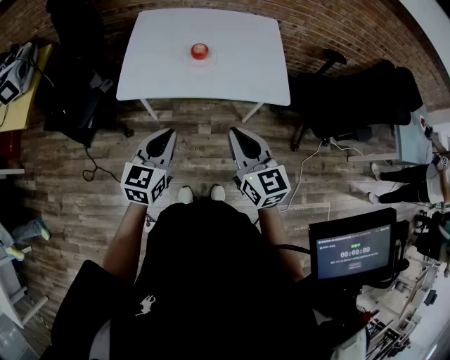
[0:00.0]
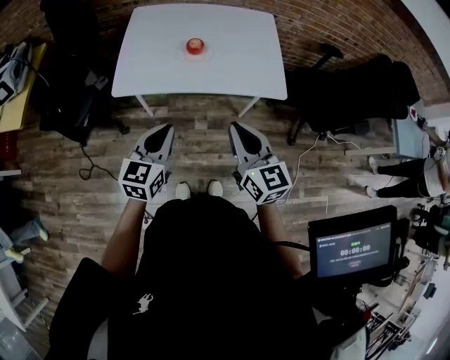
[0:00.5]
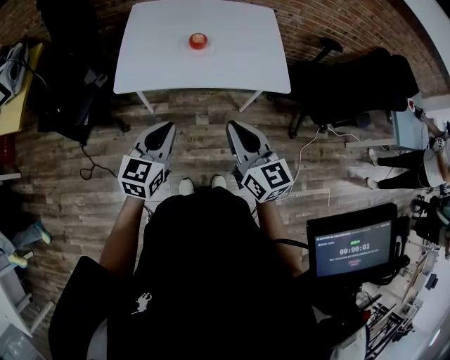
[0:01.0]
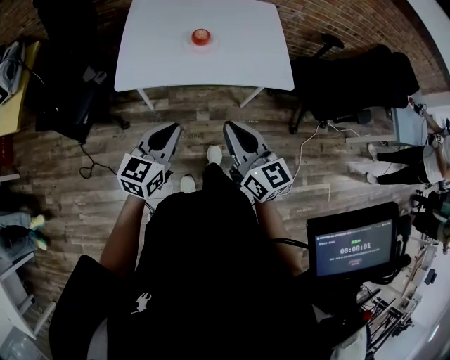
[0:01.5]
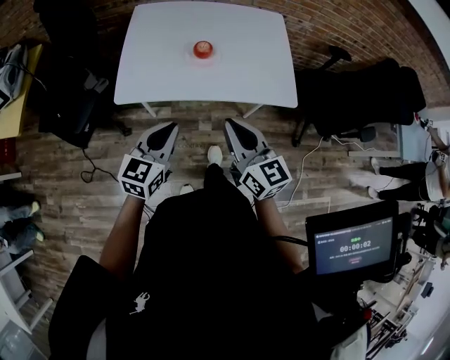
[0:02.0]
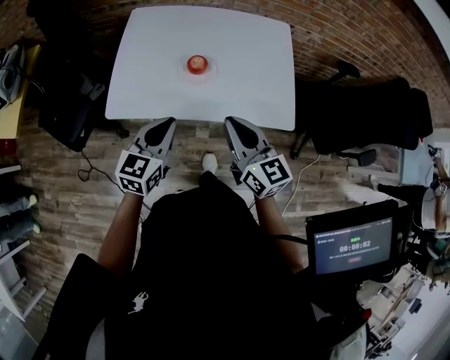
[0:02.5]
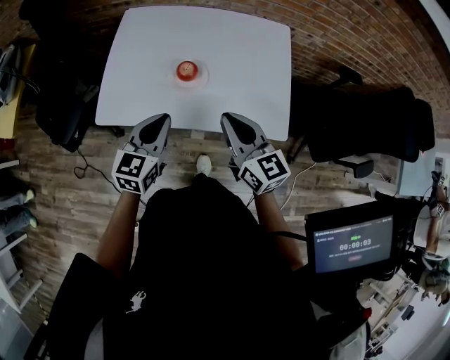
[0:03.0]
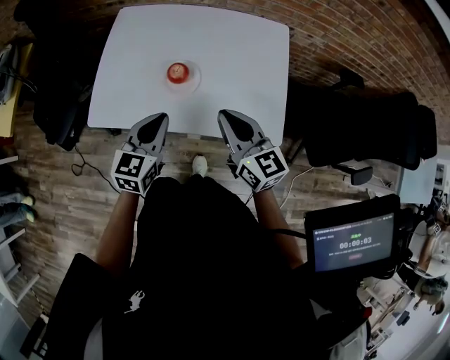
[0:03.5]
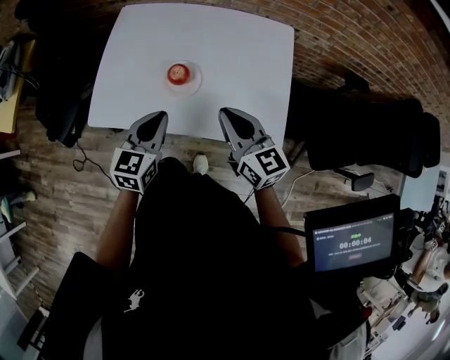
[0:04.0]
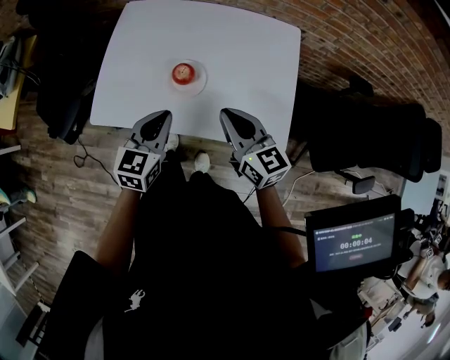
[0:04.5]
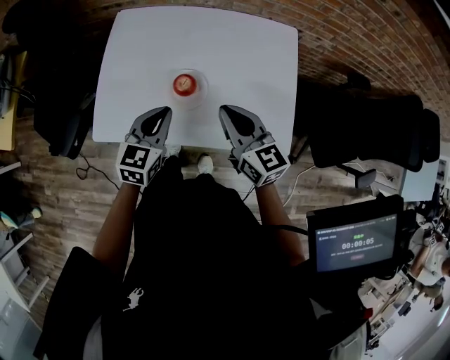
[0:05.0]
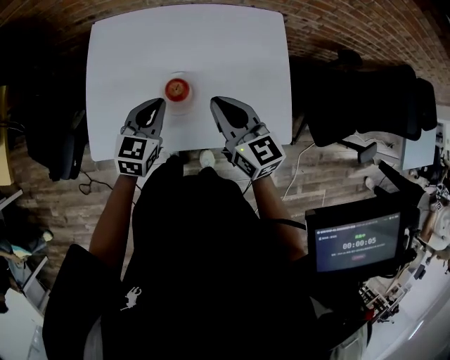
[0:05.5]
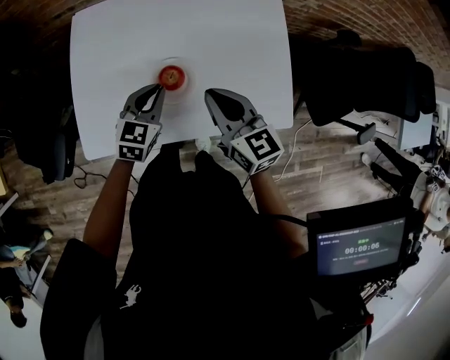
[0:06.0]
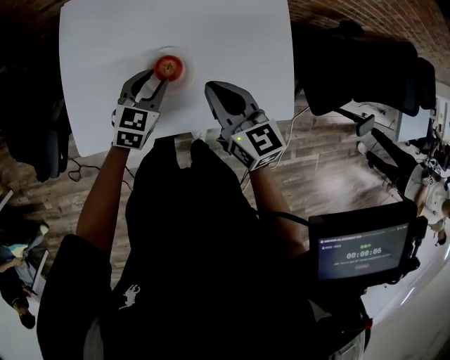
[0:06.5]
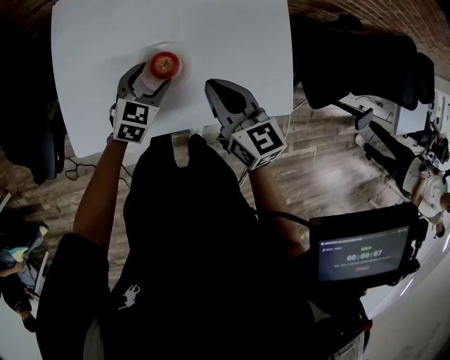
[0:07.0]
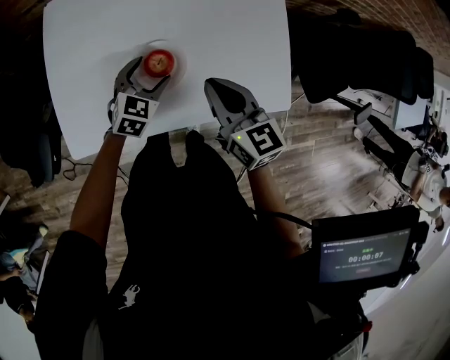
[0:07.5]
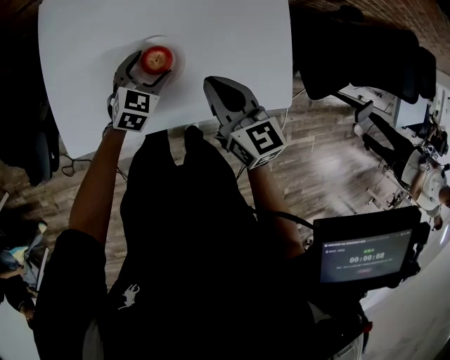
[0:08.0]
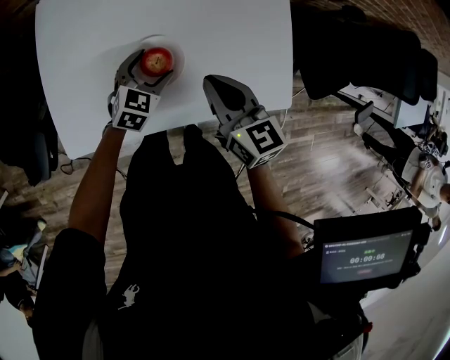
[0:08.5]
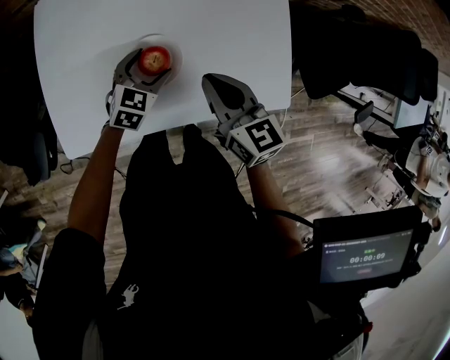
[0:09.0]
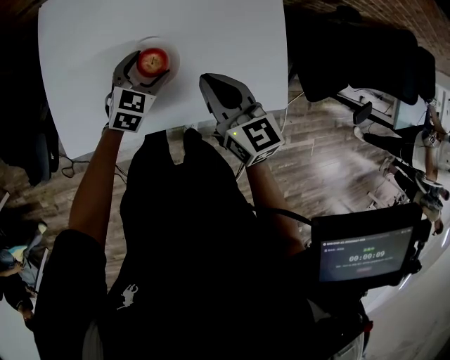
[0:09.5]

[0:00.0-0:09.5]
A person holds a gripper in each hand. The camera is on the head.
0.0 to 2.0 s: The two grippers go roughly 5 cm forward.
2.0 to 4.0 s: The grippers both shift forward and to the right by about 25 cm.
4.0 to 5.5 s: The left gripper is displaced forward by about 10 cm; the right gripper moves forward and to the left, about 10 cm.
5.5 to 7.5 s: The right gripper moves downward, about 5 cm; the left gripper heads downward, covering about 15 cm, rotates about 20 degrees, and opens its fingers.
7.5 to 9.5 s: Neither gripper changes place.

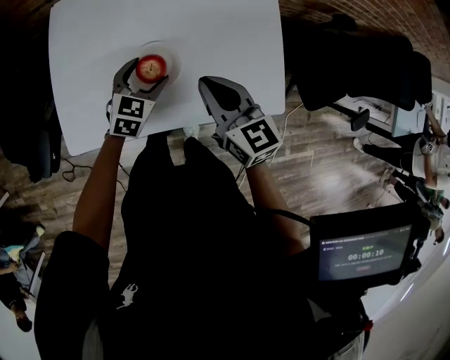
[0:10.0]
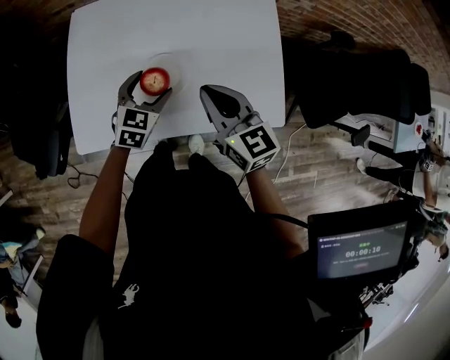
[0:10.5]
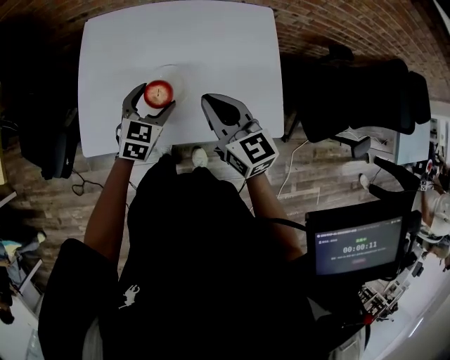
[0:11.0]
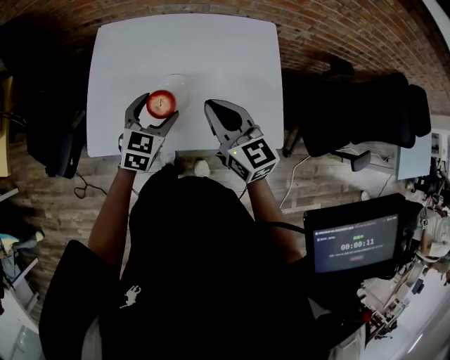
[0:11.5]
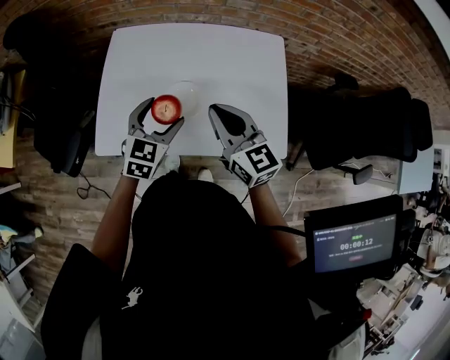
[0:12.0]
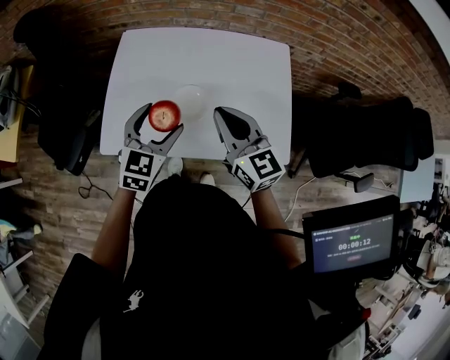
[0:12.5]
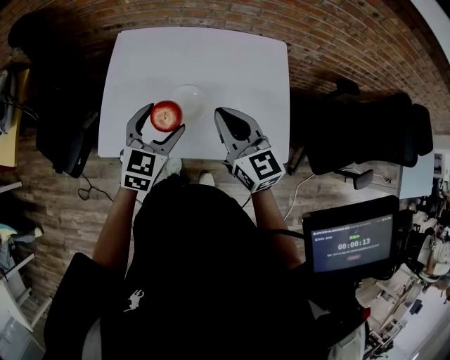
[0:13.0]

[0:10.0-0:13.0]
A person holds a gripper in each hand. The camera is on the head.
10.0 to 11.5 s: The left gripper travels upward and backward by about 10 cm. The right gripper heads upward, covering approximately 5 cm.
11.5 to 13.0 s: The left gripper goes roughly 5 cm upward.

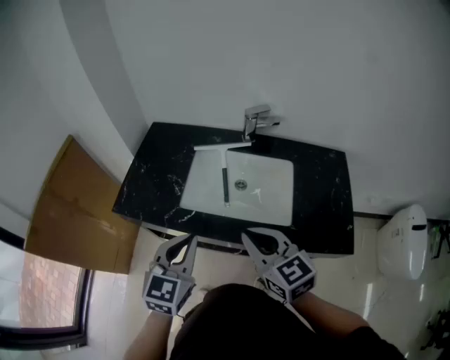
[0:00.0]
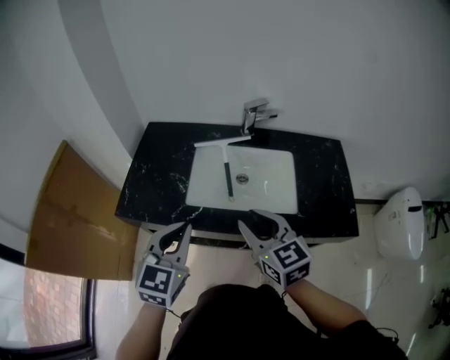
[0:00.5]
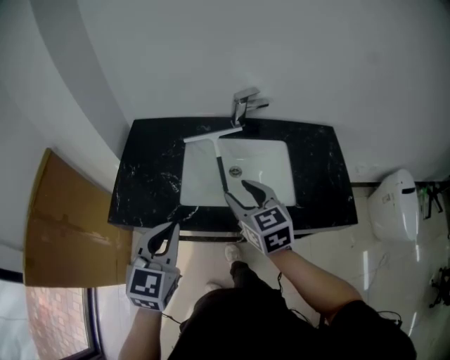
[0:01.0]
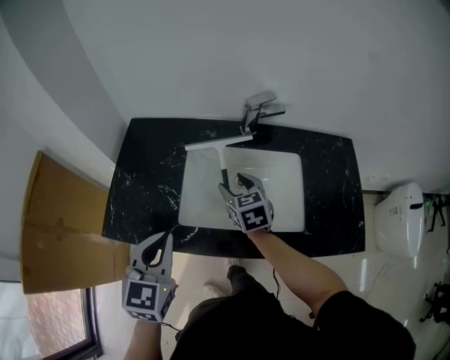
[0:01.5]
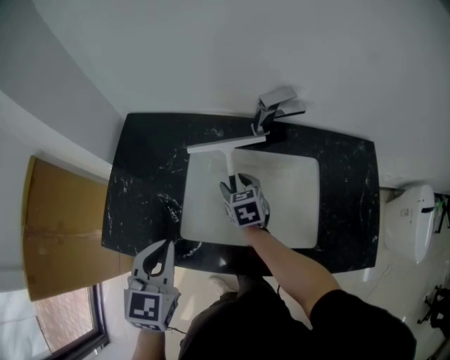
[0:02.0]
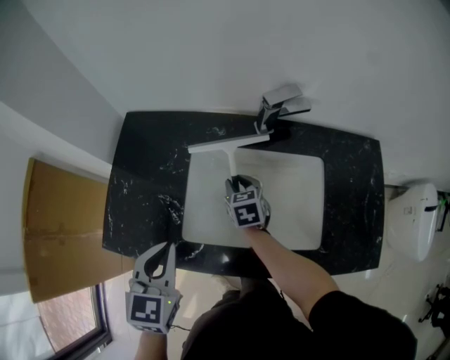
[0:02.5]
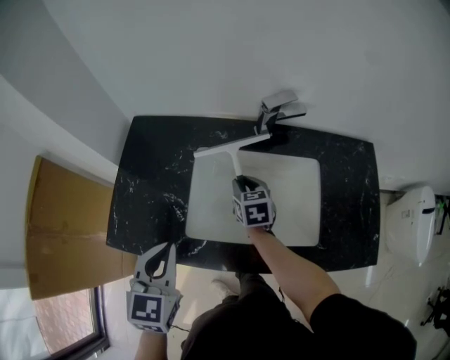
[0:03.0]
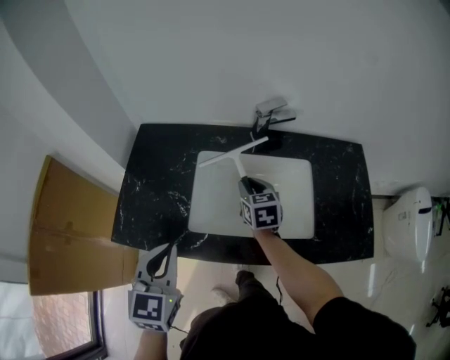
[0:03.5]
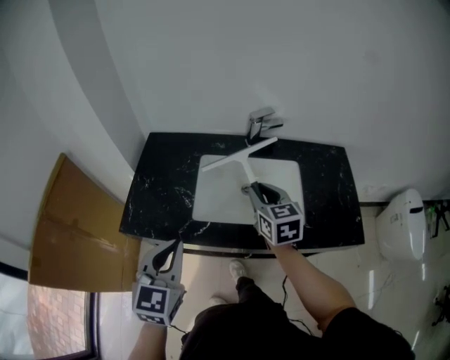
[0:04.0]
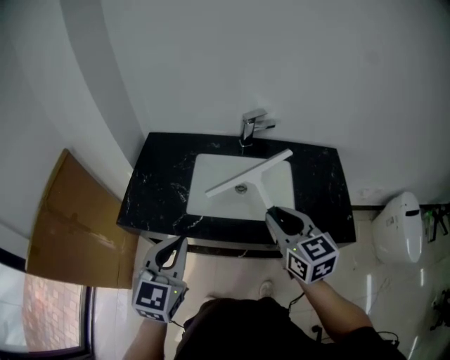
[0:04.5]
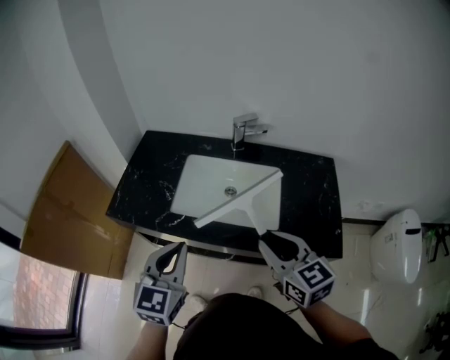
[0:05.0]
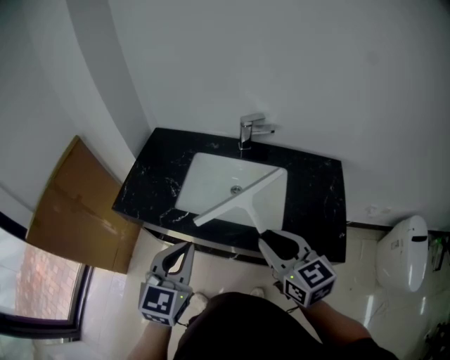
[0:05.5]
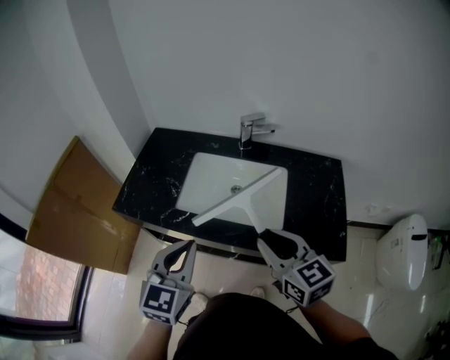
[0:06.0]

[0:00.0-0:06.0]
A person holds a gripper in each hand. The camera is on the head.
0.0 to 2.0 s: The right gripper moves forward and downward, roughly 40 cm, changes its angle by about 30 degrees, and opens its fingers. The left gripper shifts some 15 cm forward and to the left.
2.0 to 4.0 s: The right gripper shifts roughly 25 cm upward and backward, changes its angle by about 20 degrees, and closes its fingers. The left gripper travels backward and upward by approximately 15 cm.
4.0 to 6.0 s: The right gripper goes about 20 cm backward, and turns by approximately 20 degrees, while the left gripper travels to the right and backward by some 15 cm.

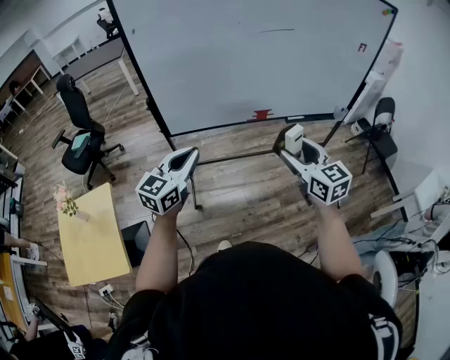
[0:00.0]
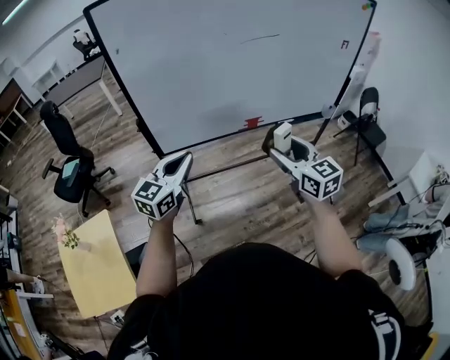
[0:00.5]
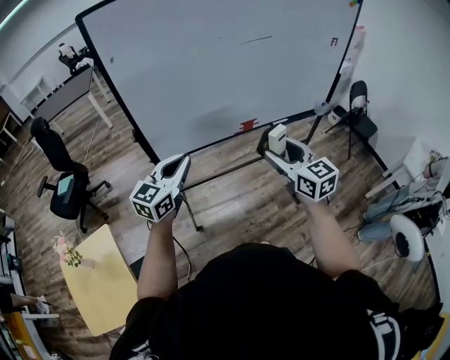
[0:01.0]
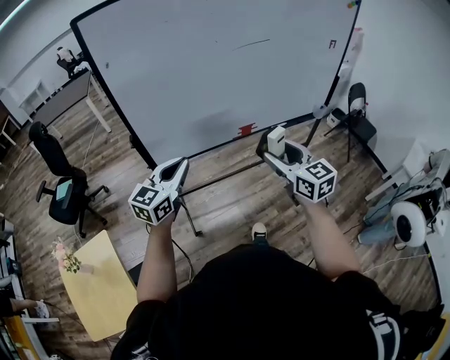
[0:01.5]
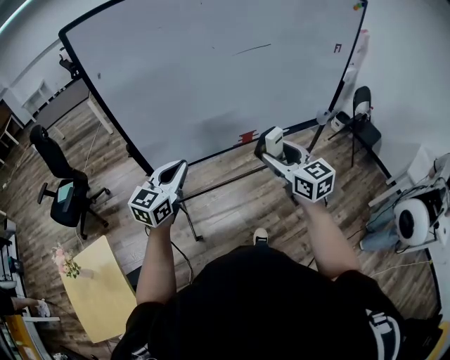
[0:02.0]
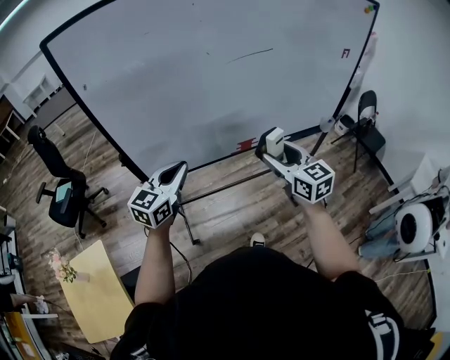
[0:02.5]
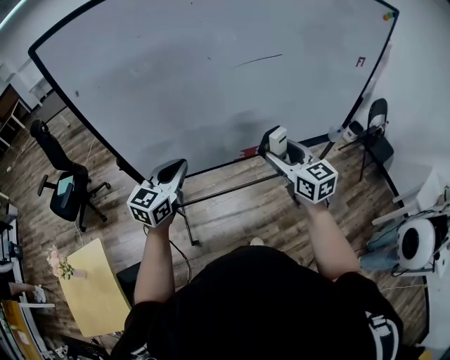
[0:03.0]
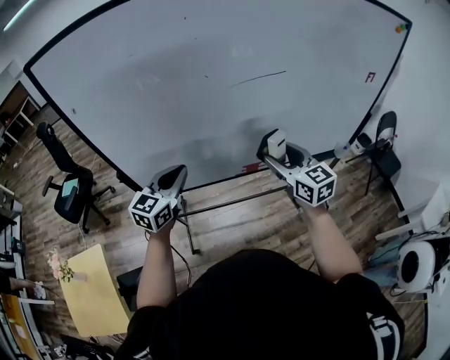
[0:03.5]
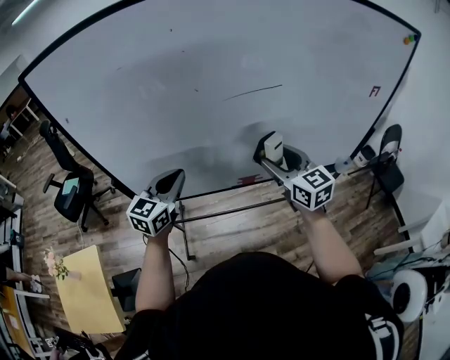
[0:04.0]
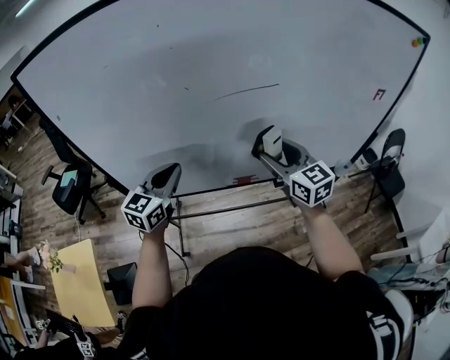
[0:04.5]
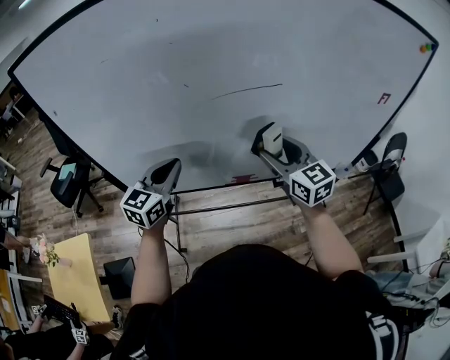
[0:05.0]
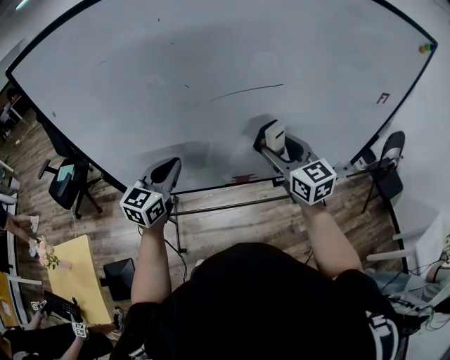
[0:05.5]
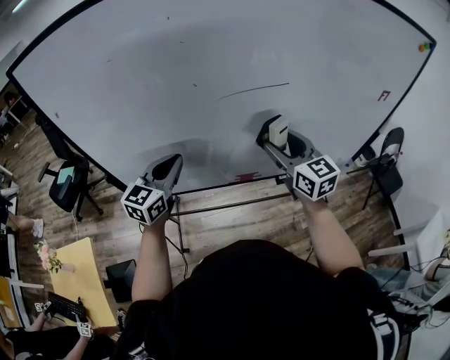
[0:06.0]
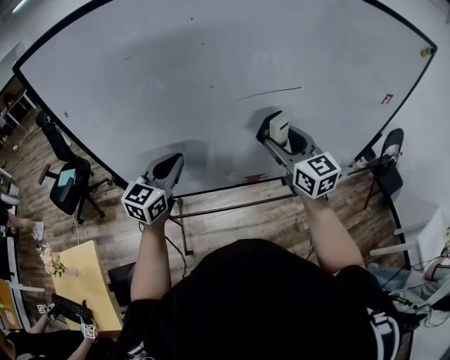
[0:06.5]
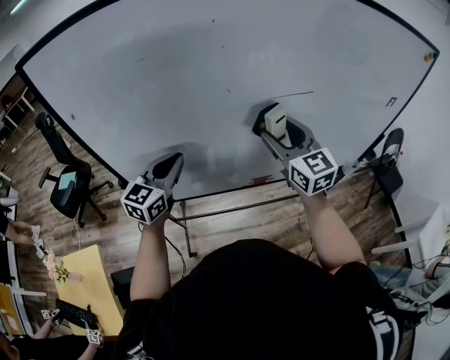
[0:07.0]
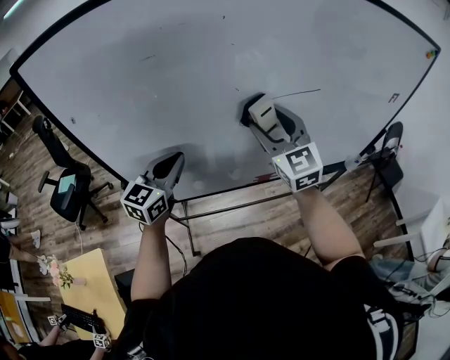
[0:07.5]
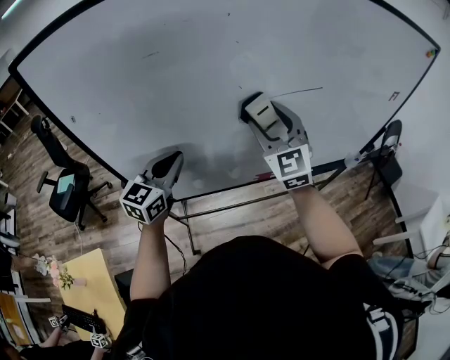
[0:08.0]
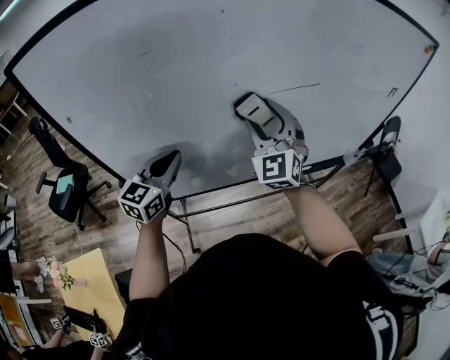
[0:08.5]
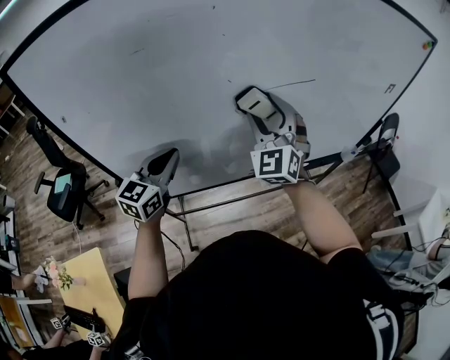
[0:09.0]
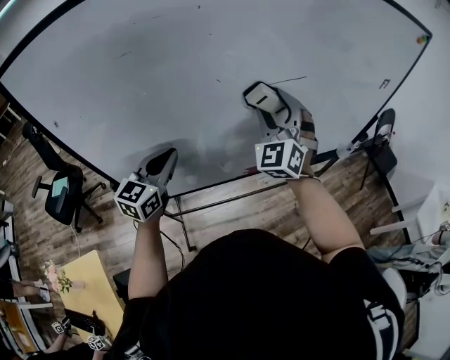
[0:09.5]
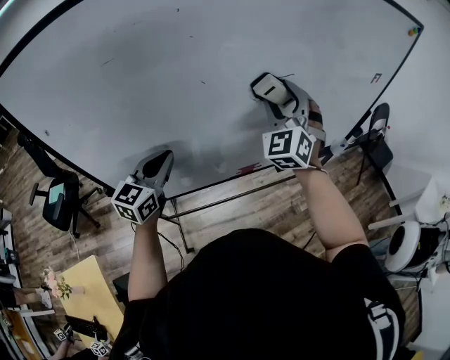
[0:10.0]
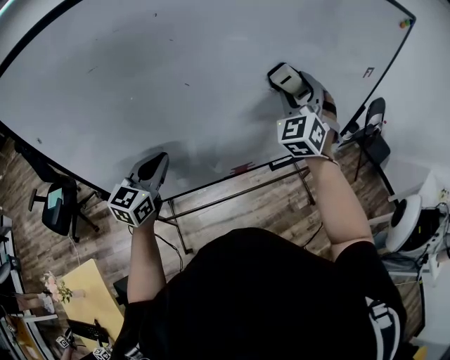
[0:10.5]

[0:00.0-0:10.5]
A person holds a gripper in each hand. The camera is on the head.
0.0 to 2.0 s: The right gripper shifts some 10 cm forward and to the left. Meanwhile the left gripper moves forward, about 10 cm.
2.0 to 4.0 s: The two grippers go roughly 20 cm forward.
4.0 to 6.5 s: The left gripper moves some 5 cm. The right gripper shifts some 5 cm forward.
6.5 to 8.5 s: The left gripper moves approximately 5 cm. Meanwhile the right gripper travels to the left by some 10 cm, and rotates around the line of its fingers by about 40 degrees, counterclockwise from behind.
8.5 to 10.5 s: The left gripper goes roughly 5 cm to the right, while the right gripper heads to the right and forward, covering roughly 20 cm, and rotates approximately 30 degrees.
